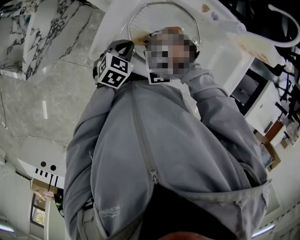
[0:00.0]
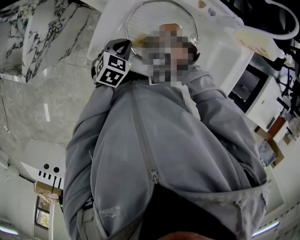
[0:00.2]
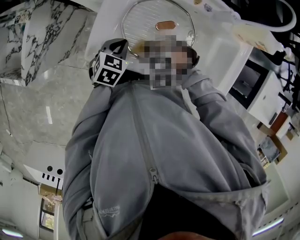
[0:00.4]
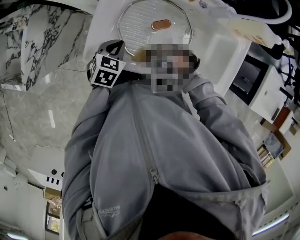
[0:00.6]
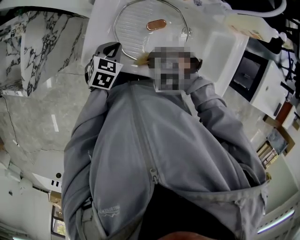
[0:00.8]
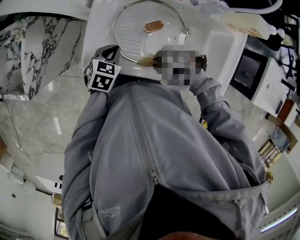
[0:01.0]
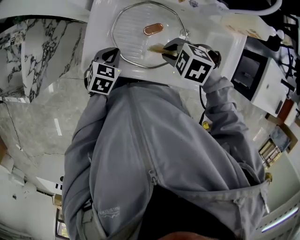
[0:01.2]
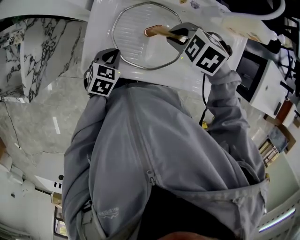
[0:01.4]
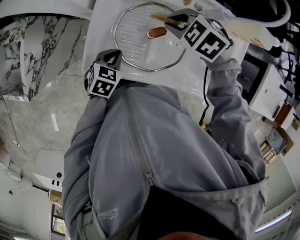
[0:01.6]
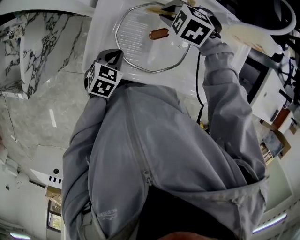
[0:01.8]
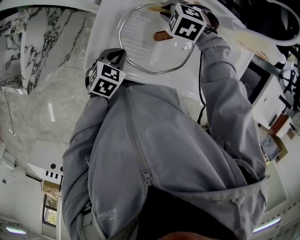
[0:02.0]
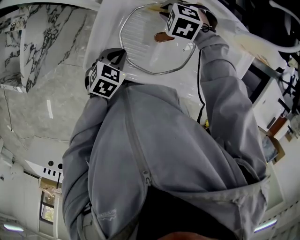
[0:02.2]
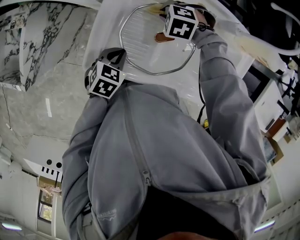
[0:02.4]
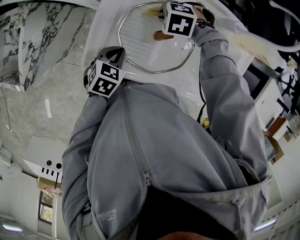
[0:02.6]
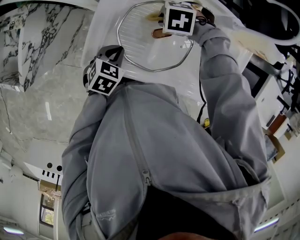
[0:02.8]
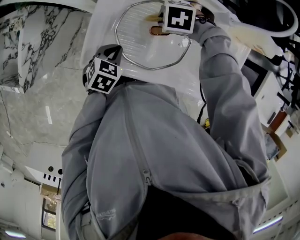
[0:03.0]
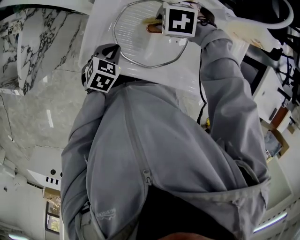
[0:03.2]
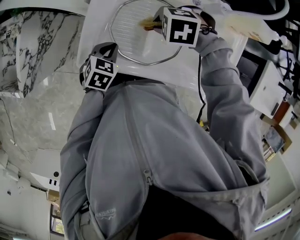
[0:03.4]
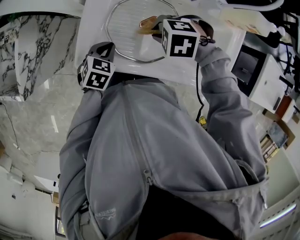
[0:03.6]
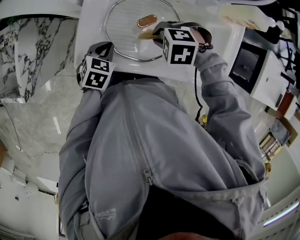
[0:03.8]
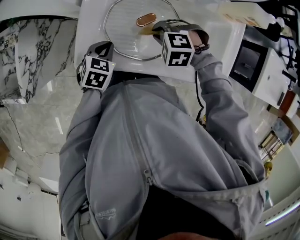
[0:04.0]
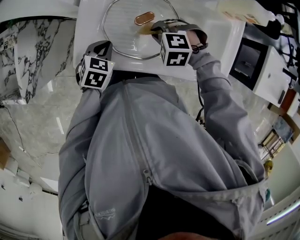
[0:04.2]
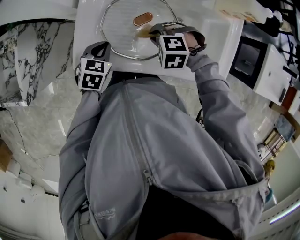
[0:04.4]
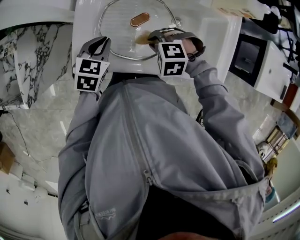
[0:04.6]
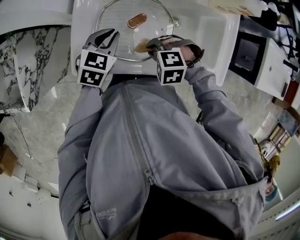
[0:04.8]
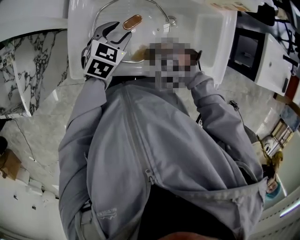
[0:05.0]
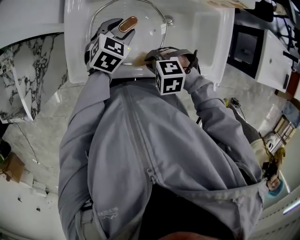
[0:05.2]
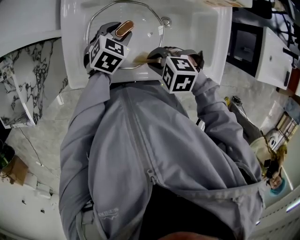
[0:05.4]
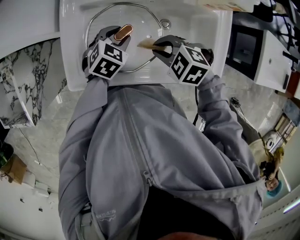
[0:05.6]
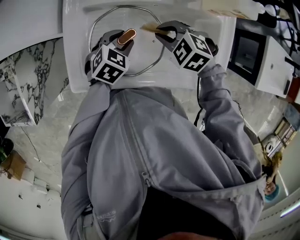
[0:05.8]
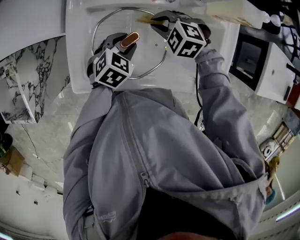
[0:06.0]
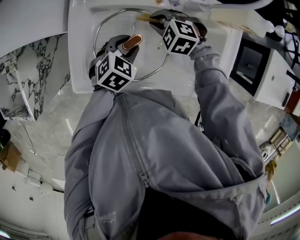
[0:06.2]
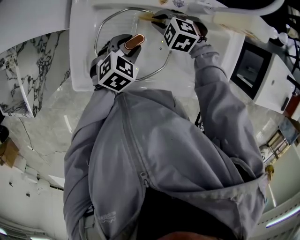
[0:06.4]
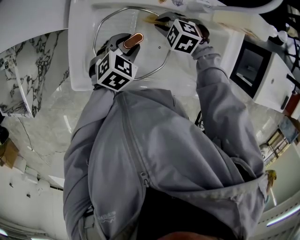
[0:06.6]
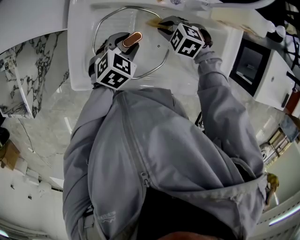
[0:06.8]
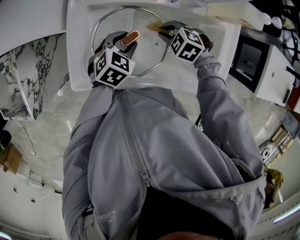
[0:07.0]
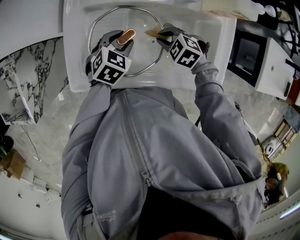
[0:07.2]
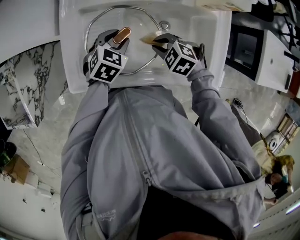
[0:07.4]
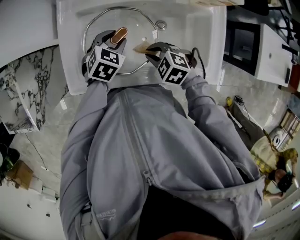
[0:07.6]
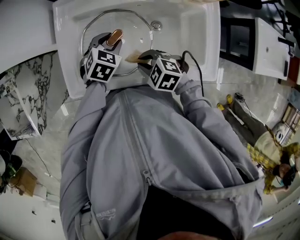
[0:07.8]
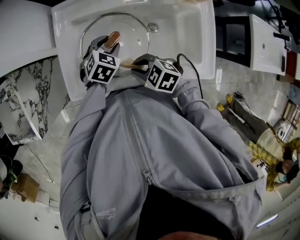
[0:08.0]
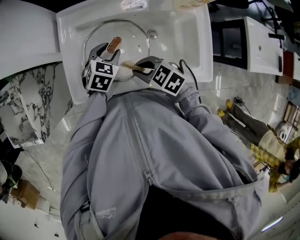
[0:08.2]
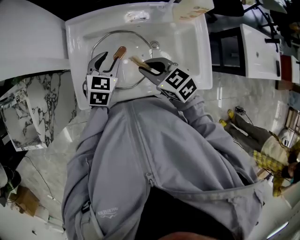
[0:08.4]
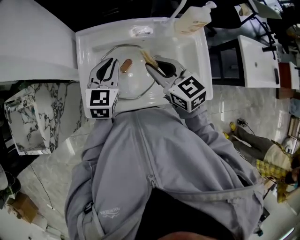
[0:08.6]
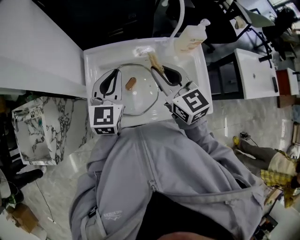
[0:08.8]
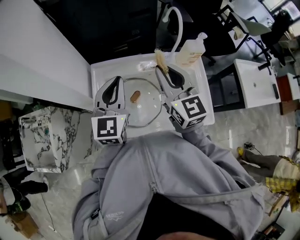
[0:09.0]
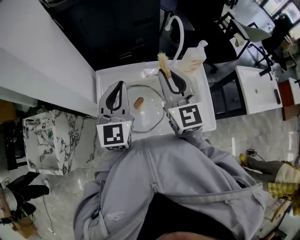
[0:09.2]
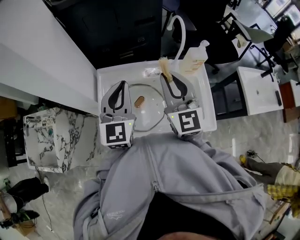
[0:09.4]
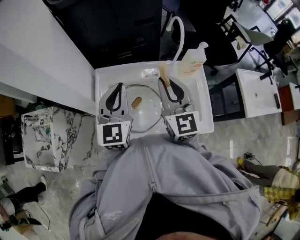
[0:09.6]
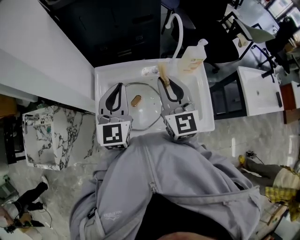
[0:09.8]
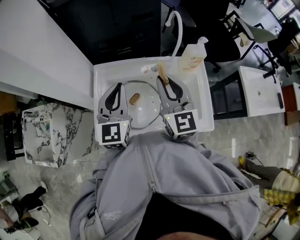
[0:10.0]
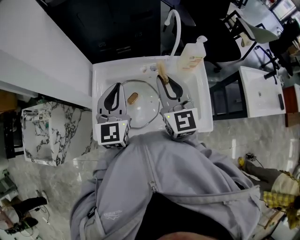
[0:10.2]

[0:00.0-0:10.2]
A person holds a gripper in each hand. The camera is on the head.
0:00.0 to 0:01.4: The right gripper moves some 15 cm, and rotates around the line of its fingers by about 40 degrees, clockwise from behind.
0:01.4 to 0:03.0: The right gripper shifts roughly 10 cm downward, and swivels some 30 degrees.
0:03.0 to 0:04.4: The right gripper changes place by approximately 10 cm, and changes its angle by approximately 20 degrees.
0:04.4 to 0:05.8: The right gripper shifts by about 10 cm, and turns by approximately 30 degrees. Meanwhile the left gripper changes place by roughly 15 cm, turns by approximately 20 degrees, and opens up.
0:05.8 to 0:07.2: The right gripper goes some 5 cm downward, and moves approximately 10 cm forward and comes back.
0:07.2 to 0:08.8: Both grippers travel together upward, roughly 30 cm. The left gripper points its fingers approximately 40 degrees further upward, and closes its fingers, while the right gripper angles its fingers upward, by about 50 degrees.

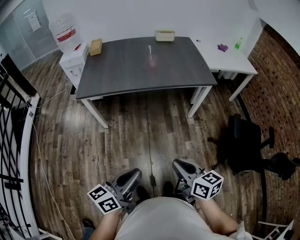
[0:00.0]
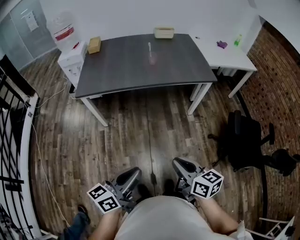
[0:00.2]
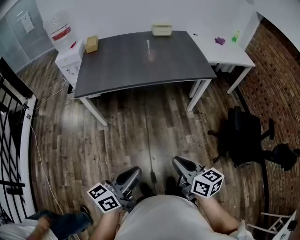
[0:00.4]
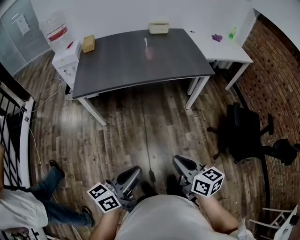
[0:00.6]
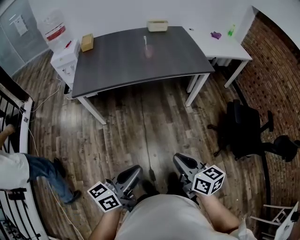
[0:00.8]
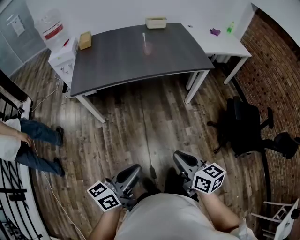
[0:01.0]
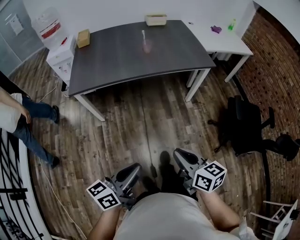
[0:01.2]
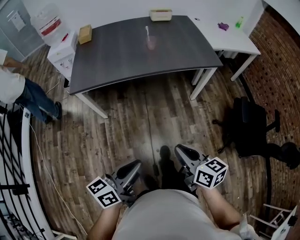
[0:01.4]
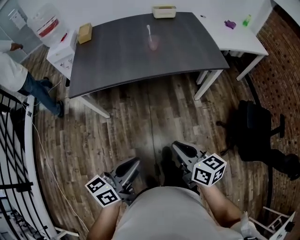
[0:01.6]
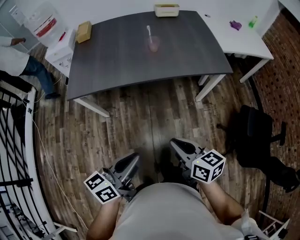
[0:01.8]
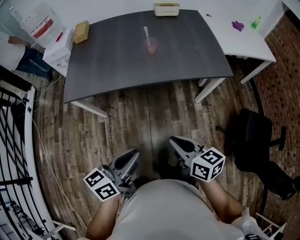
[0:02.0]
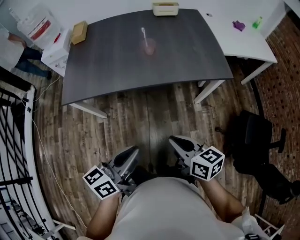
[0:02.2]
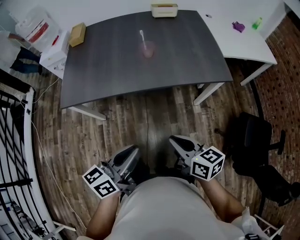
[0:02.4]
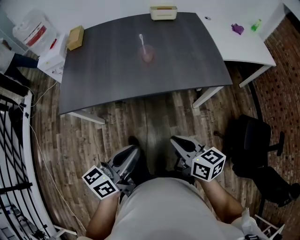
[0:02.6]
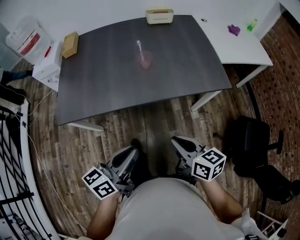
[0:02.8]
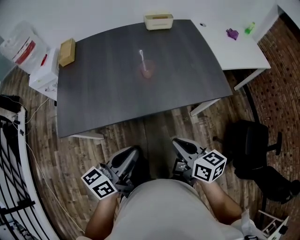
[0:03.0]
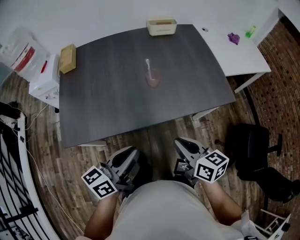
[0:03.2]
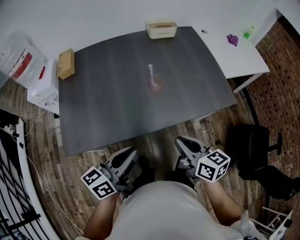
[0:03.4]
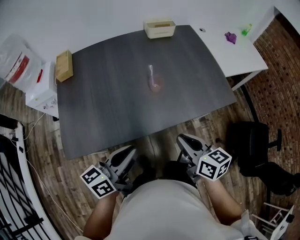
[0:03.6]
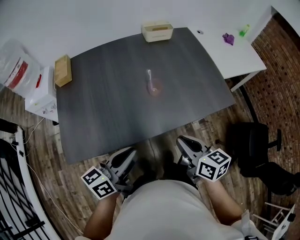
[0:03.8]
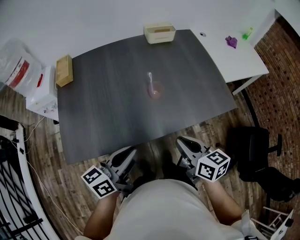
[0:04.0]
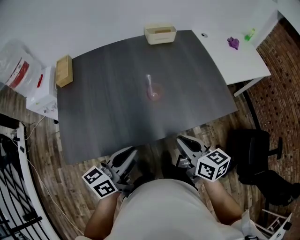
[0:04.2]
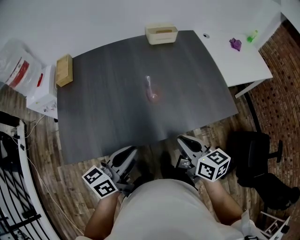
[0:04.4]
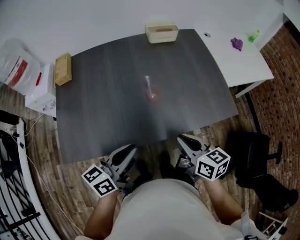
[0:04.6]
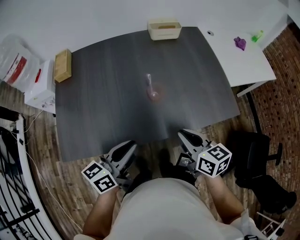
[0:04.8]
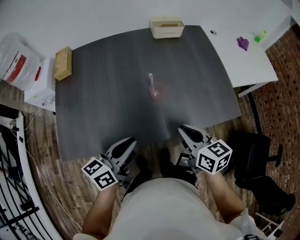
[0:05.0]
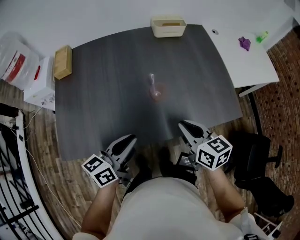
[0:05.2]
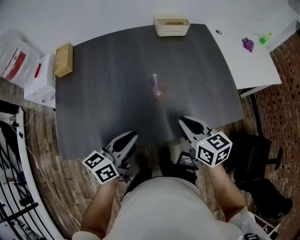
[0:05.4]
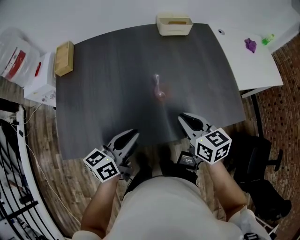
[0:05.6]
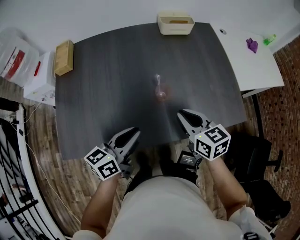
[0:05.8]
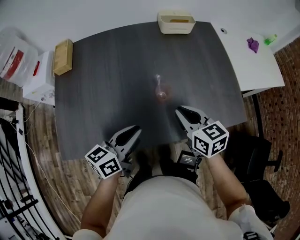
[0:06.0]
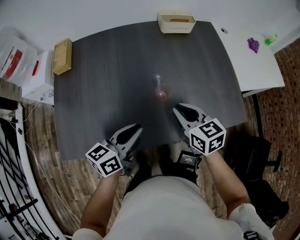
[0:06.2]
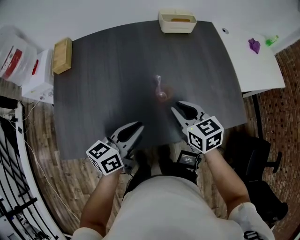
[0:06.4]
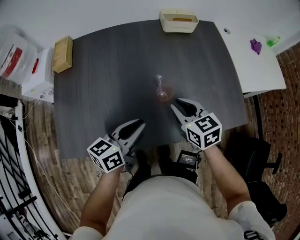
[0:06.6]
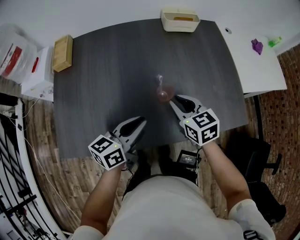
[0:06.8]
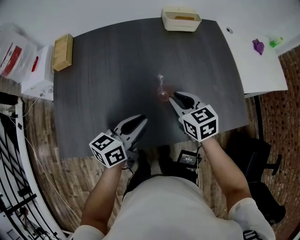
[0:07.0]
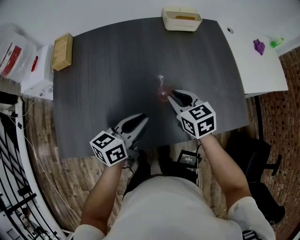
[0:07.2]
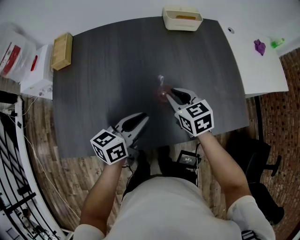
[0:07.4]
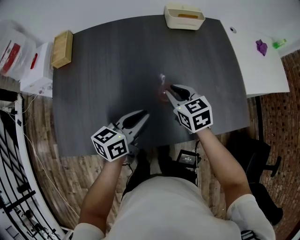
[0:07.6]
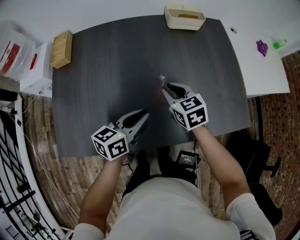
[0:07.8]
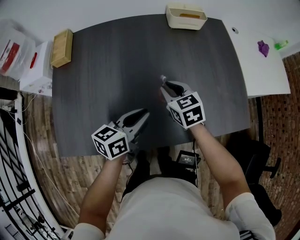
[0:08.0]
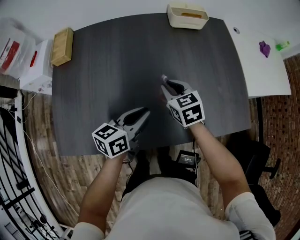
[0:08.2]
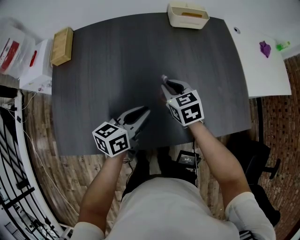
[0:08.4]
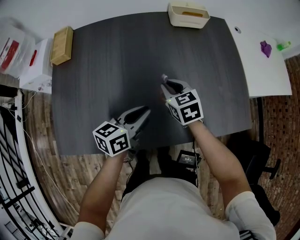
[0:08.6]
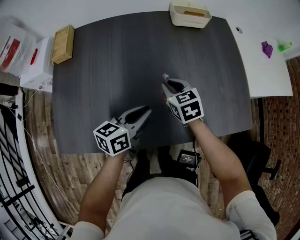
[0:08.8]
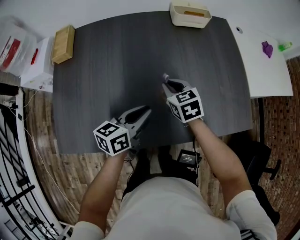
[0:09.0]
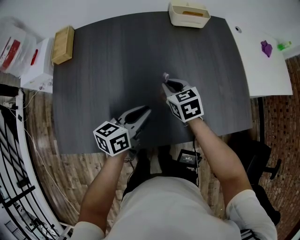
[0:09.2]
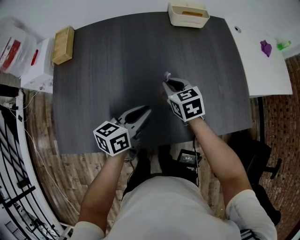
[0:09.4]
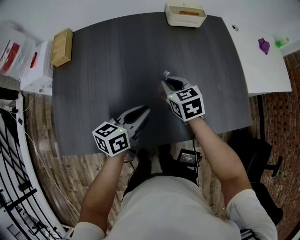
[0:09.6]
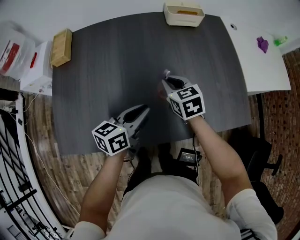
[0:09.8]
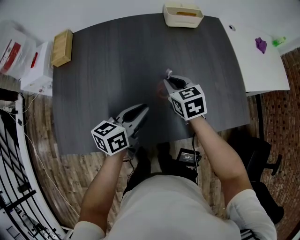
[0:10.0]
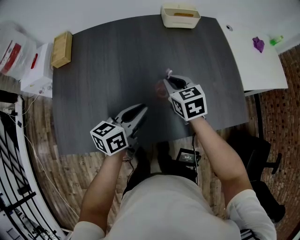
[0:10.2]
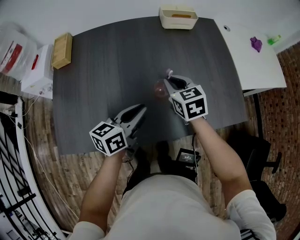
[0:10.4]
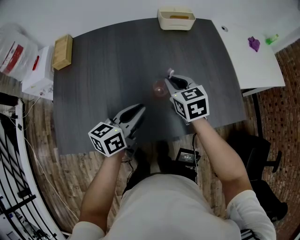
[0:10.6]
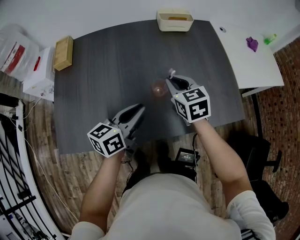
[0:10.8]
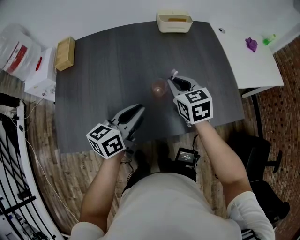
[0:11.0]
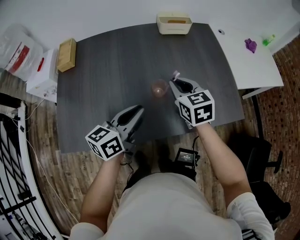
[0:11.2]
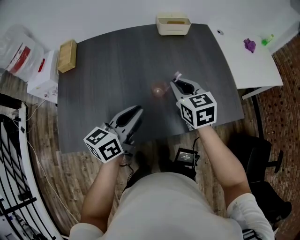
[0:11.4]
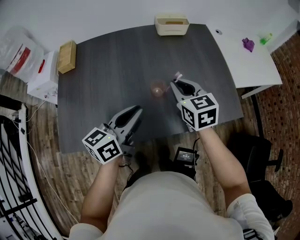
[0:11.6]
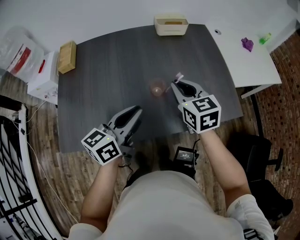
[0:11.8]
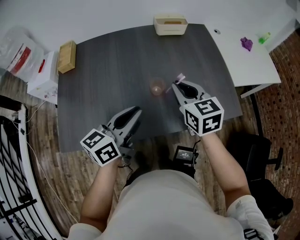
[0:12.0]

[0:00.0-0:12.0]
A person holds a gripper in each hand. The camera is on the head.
0:00.0 to 0:01.6: The grippers both shift forward by approximately 10 cm.
0:01.6 to 0:03.0: Both grippers travel together forward, roughly 25 cm.
0:03.0 to 0:04.4: The two grippers go about 15 cm forward.
0:04.4 to 0:06.0: The grippers both shift forward by about 10 cm.
0:06.0 to 0:07.6: The left gripper travels forward by roughly 5 cm. Meanwhile the right gripper moves forward and downward, approximately 10 cm.
0:07.6 to 0:09.0: The right gripper changes place by some 5 cm.
0:09.0 to 0:10.4: The right gripper goes approximately 5 cm upward.
0:10.4 to 0:12.0: The two grippers go roughly 10 cm upward and backward.

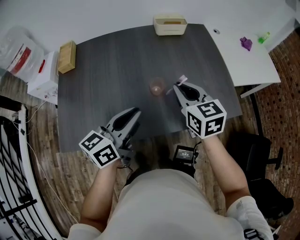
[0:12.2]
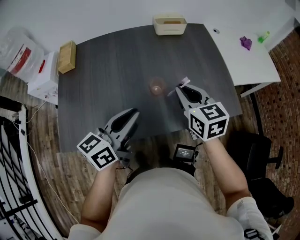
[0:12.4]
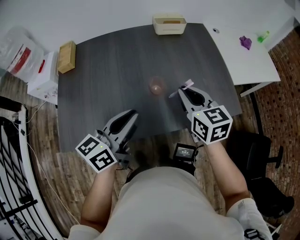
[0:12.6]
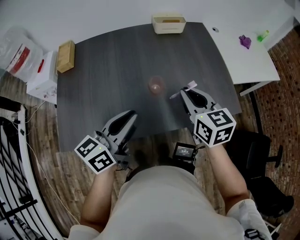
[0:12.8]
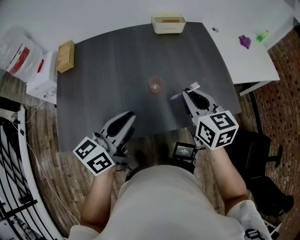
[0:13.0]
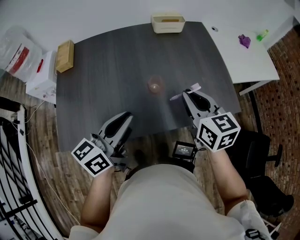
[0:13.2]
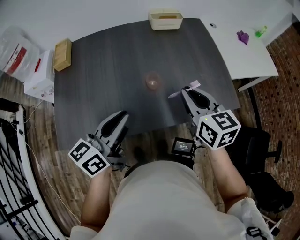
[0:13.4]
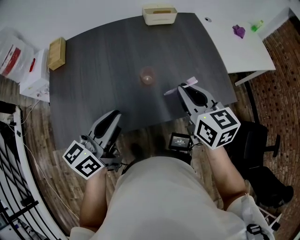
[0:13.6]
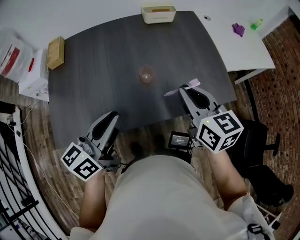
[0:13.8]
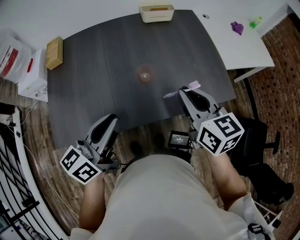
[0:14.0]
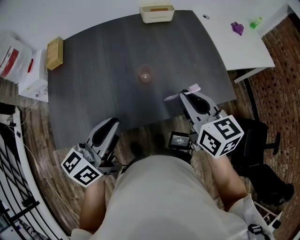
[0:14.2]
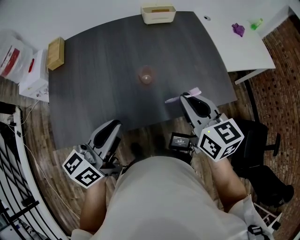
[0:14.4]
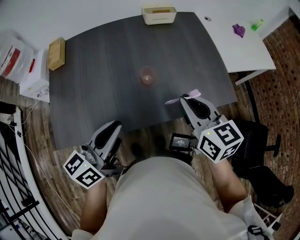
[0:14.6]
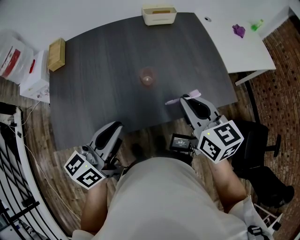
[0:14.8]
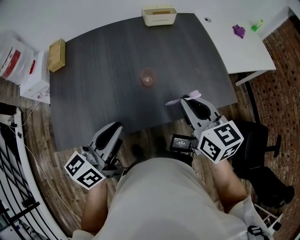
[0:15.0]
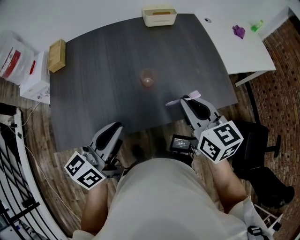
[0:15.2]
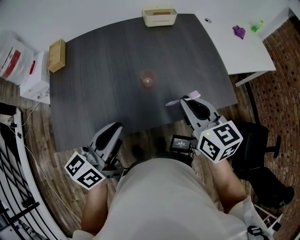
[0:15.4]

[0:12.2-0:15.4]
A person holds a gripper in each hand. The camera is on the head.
0:12.2 to 0:13.8: The right gripper is displaced backward by some 5 cm. Meanwhile the left gripper moves approximately 5 cm.
0:13.8 to 0:15.4: There are only small adjustments of the grippers.
